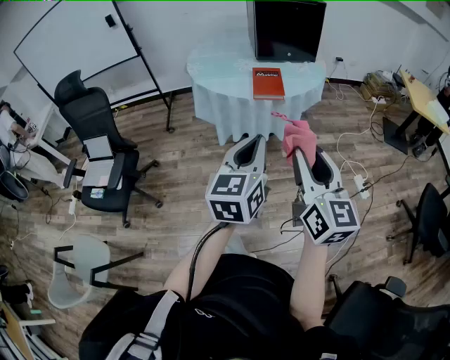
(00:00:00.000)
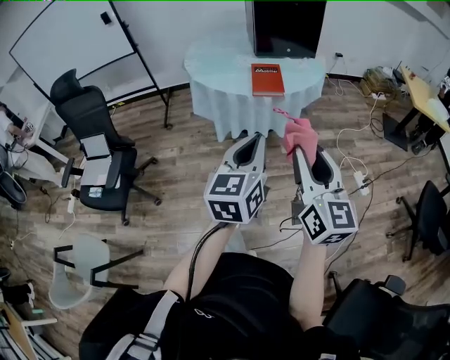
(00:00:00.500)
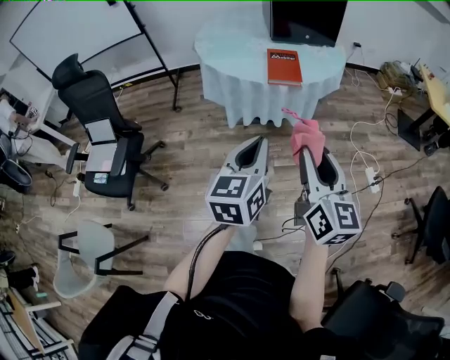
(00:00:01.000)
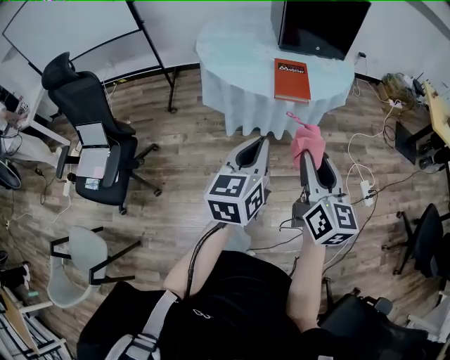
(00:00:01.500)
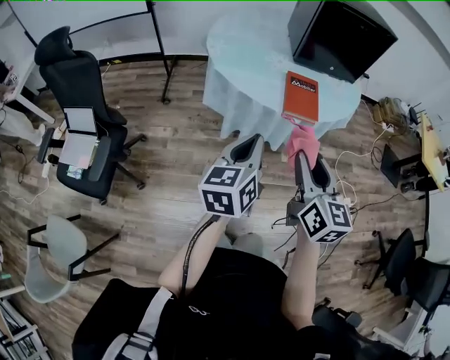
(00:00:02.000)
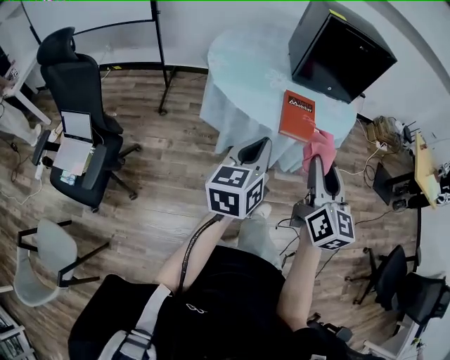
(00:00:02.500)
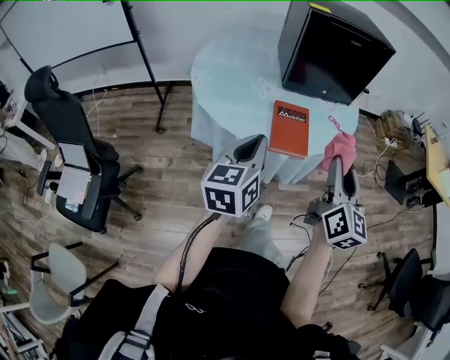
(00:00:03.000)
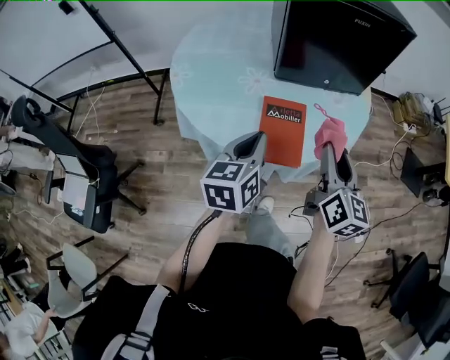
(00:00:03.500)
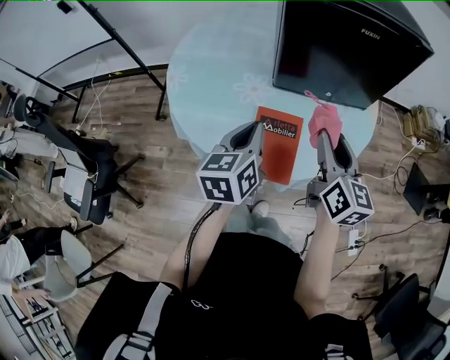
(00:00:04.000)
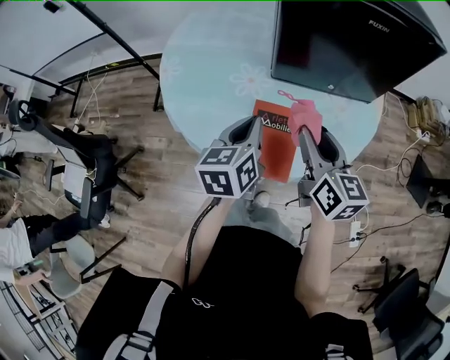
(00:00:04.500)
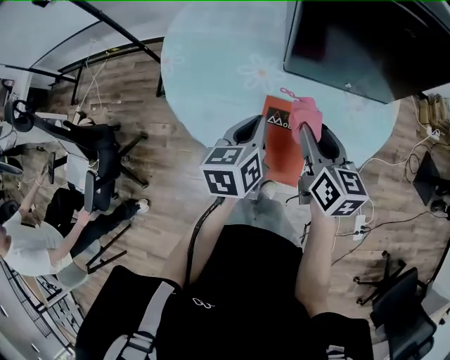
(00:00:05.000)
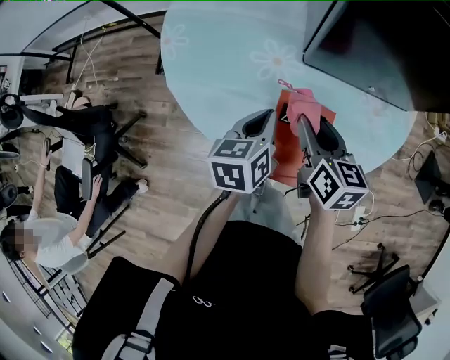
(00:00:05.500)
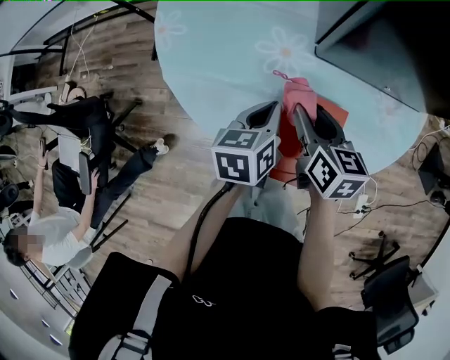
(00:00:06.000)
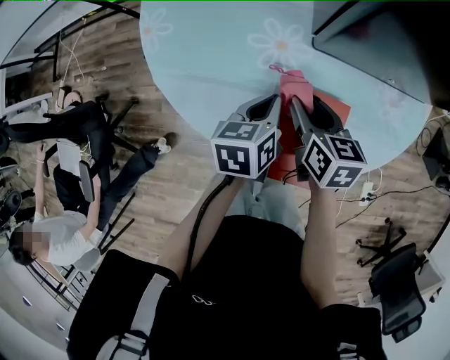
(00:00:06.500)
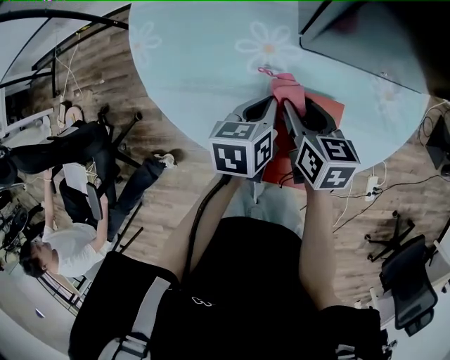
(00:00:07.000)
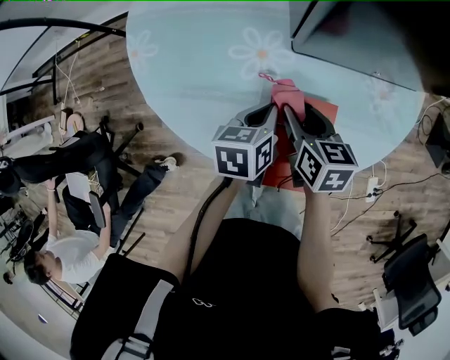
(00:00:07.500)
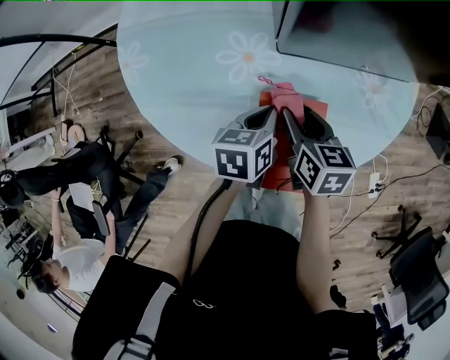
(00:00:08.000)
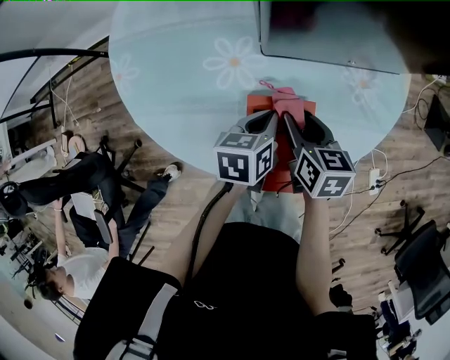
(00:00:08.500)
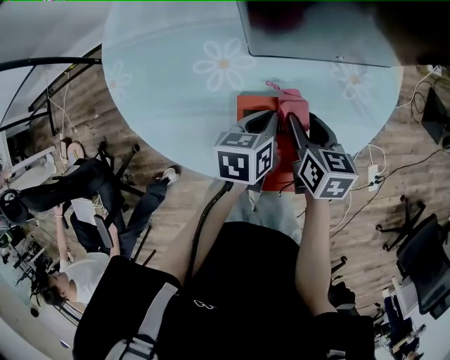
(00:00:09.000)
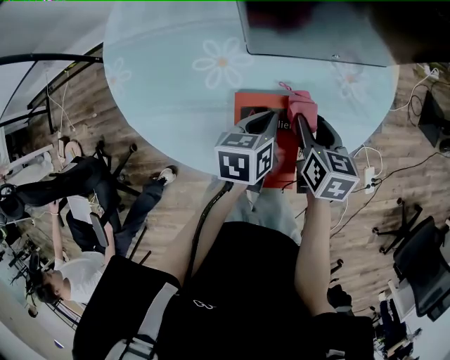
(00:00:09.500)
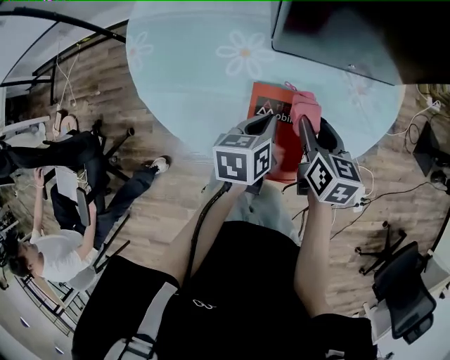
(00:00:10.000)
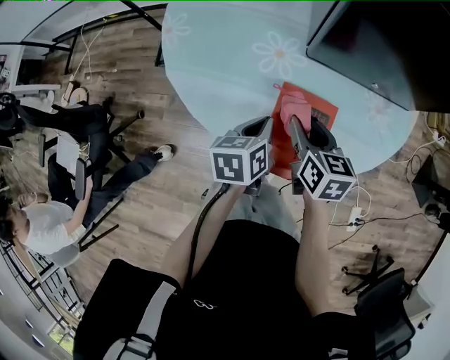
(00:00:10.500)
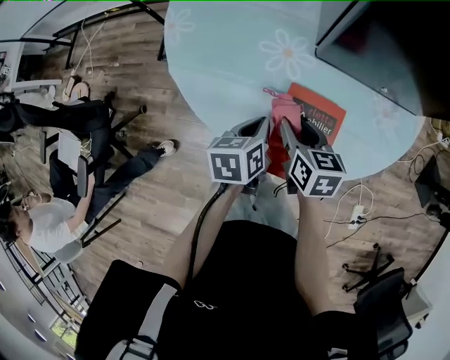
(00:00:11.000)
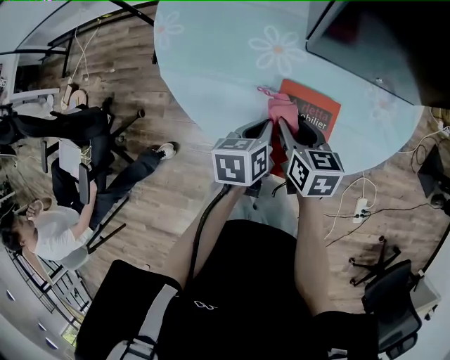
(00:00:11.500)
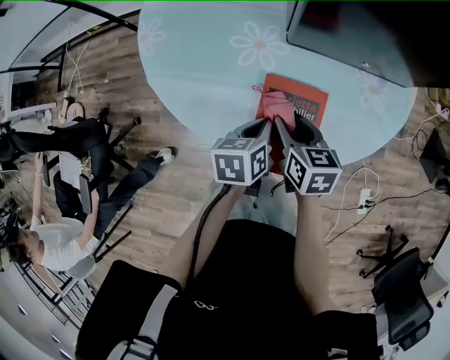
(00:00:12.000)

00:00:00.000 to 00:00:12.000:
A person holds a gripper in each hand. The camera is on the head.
00:00:00.000 to 00:00:02.000: Both grippers move forward and to the left, some 25 cm.
00:00:02.000 to 00:00:04.000: The pair of grippers is taken forward and to the right, approximately 40 cm.
00:00:04.000 to 00:00:06.000: The left gripper is displaced downward and forward by roughly 20 cm, and turns by about 20 degrees, while the right gripper heads downward, to the left and forward, covering roughly 25 cm, and rotates approximately 30 degrees.
00:00:06.000 to 00:00:08.000: The right gripper moves about 5 cm, while the left gripper is displaced to the right by some 5 cm.
00:00:08.000 to 00:00:10.000: The left gripper shifts by approximately 5 cm, while the right gripper shifts roughly 5 cm to the right.
00:00:10.000 to 00:00:12.000: The right gripper travels to the left by approximately 10 cm.

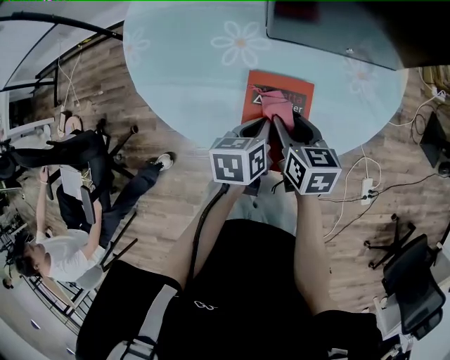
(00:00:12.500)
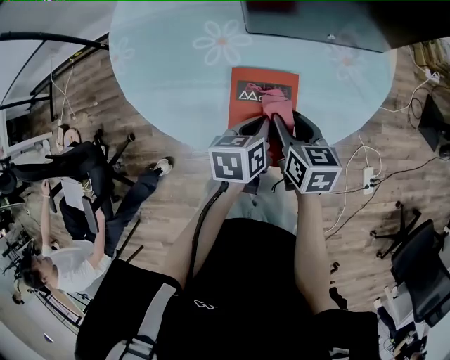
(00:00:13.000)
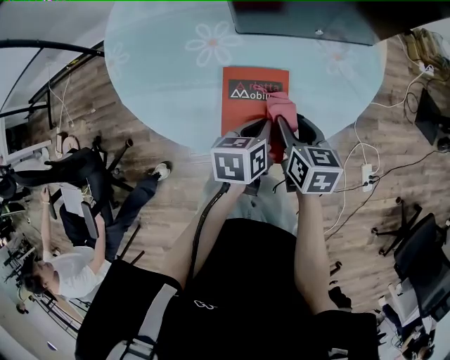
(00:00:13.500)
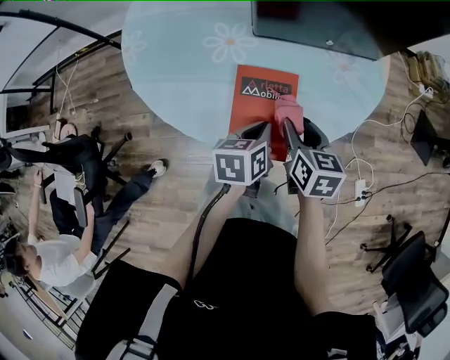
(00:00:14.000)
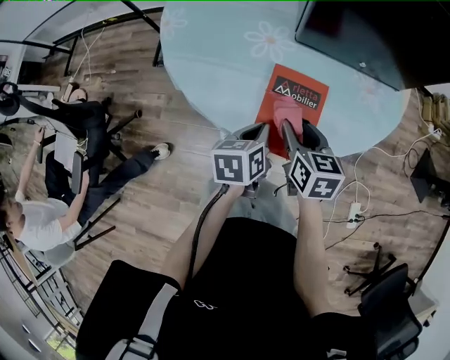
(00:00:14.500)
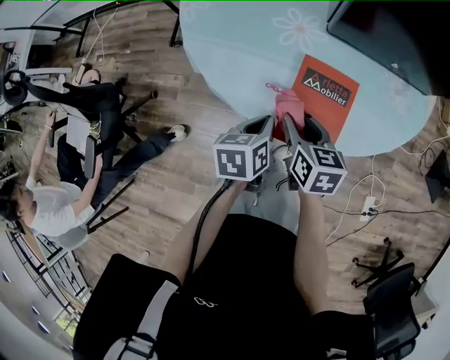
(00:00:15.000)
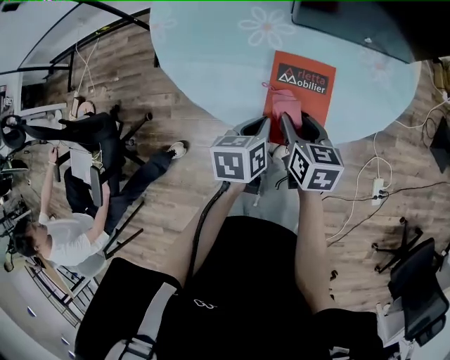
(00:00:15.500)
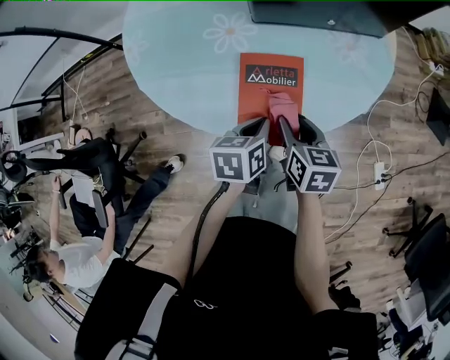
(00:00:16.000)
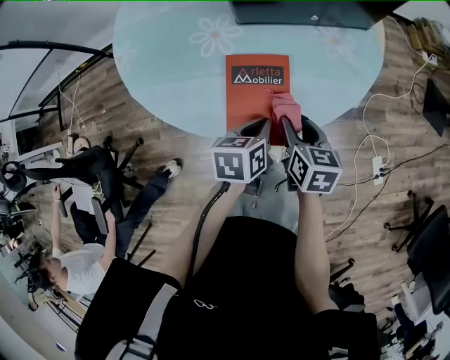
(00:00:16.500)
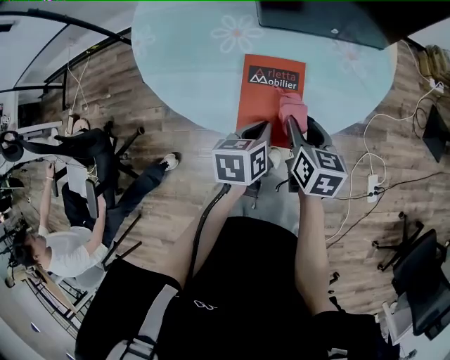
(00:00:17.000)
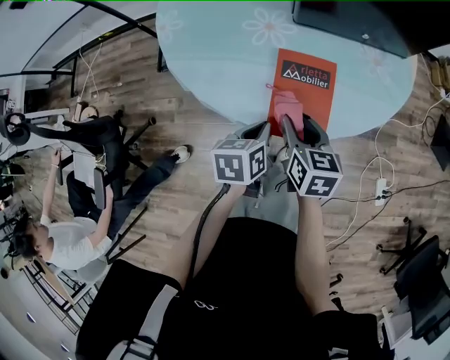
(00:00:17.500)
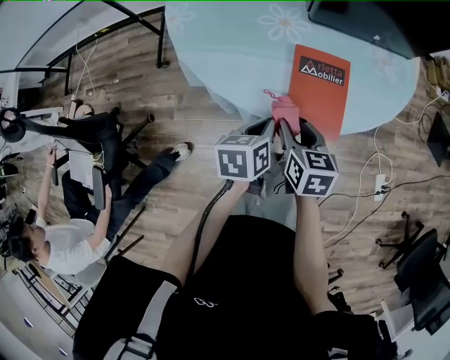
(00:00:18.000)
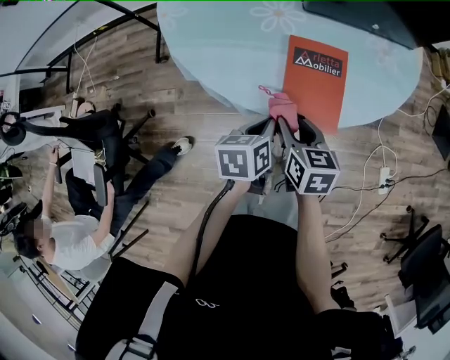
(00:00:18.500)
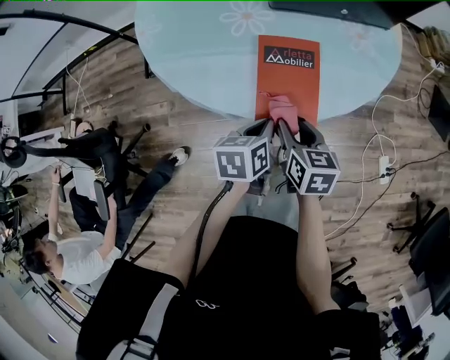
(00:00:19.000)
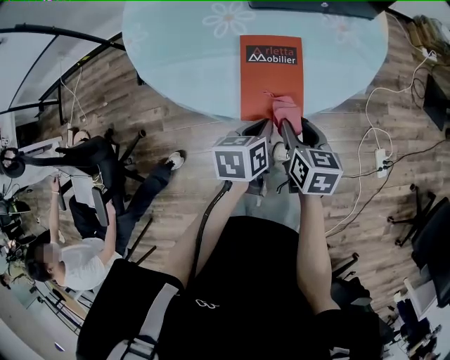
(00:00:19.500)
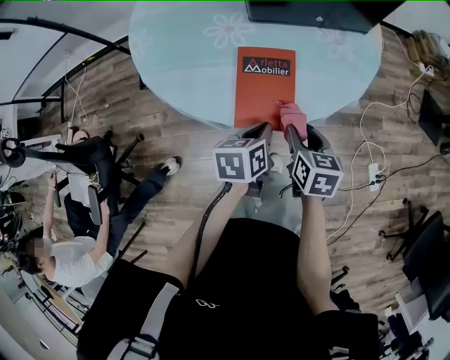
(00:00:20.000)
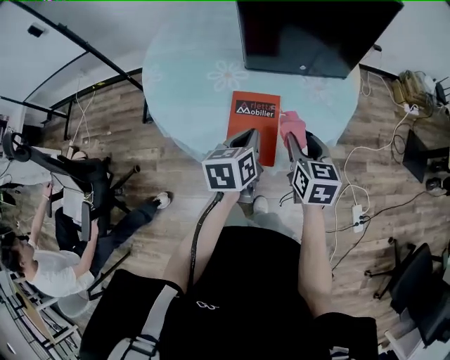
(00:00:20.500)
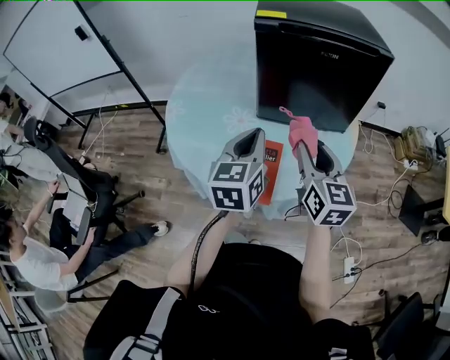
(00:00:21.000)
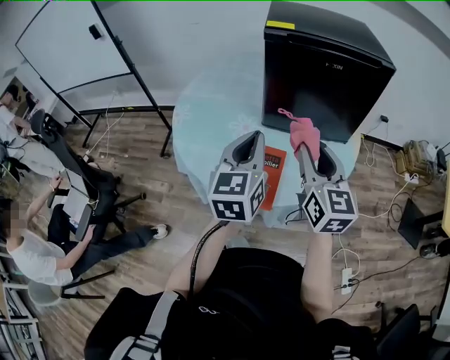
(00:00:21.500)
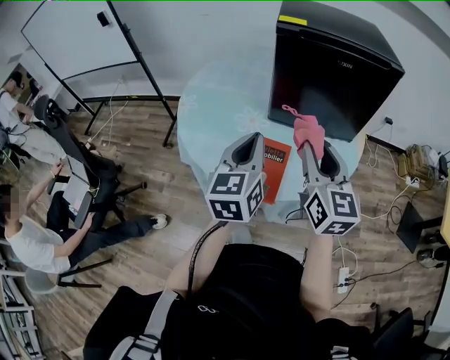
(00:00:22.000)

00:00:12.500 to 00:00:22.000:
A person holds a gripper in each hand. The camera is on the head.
00:00:12.500 to 00:00:14.500: The right gripper travels to the right and back again, some 5 cm each way; the left gripper heads backward, covering some 5 cm.
00:00:14.500 to 00:00:16.500: Both grippers move to the right, roughly 10 cm.
00:00:16.500 to 00:00:18.000: The right gripper moves to the left, approximately 15 cm. The left gripper goes approximately 15 cm to the left and backward.
00:00:18.000 to 00:00:20.000: Both grippers travel together to the right, roughly 15 cm.
00:00:20.000 to 00:00:22.000: The grippers both shift upward by about 30 cm. The right gripper angles its fingers upward, by approximately 40 degrees, while the left gripper tips its fingers upward by roughly 40 degrees.

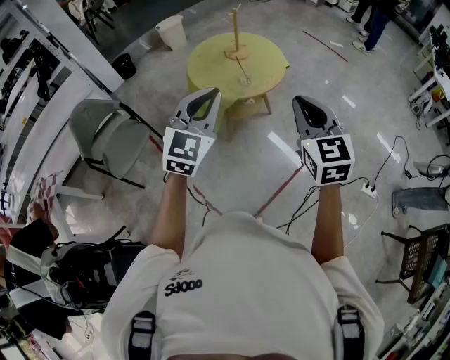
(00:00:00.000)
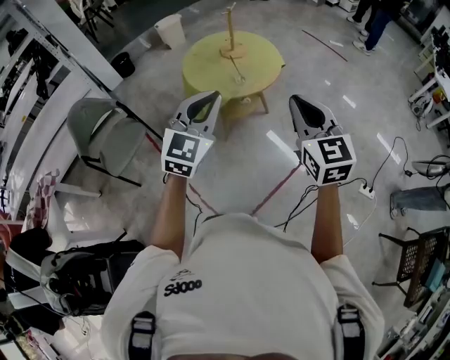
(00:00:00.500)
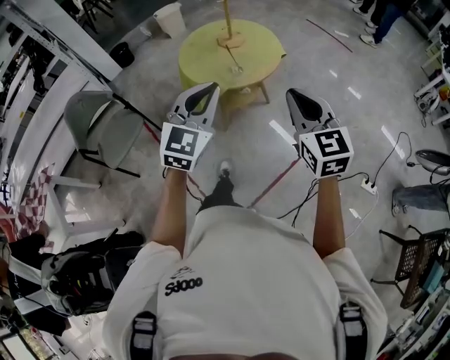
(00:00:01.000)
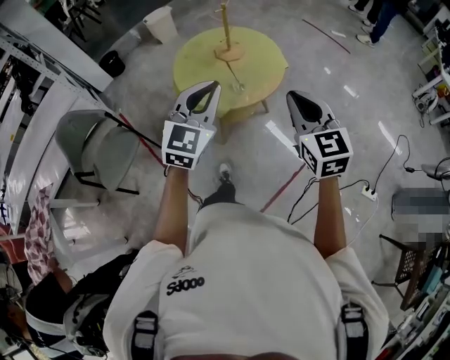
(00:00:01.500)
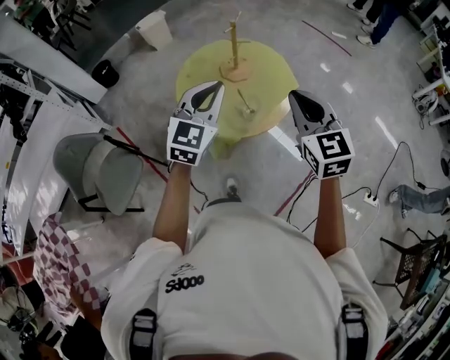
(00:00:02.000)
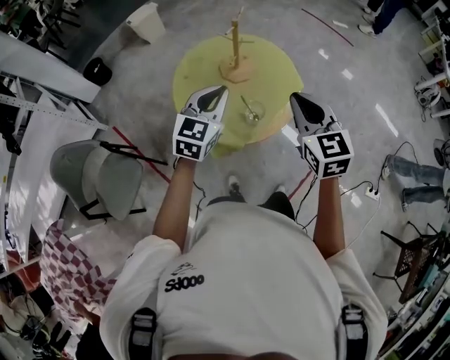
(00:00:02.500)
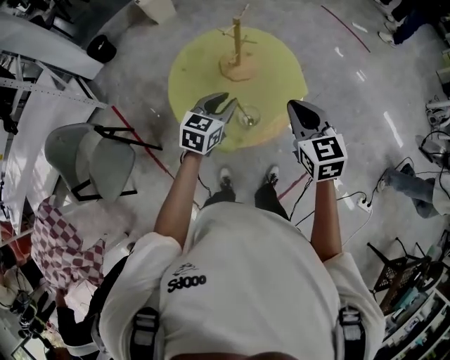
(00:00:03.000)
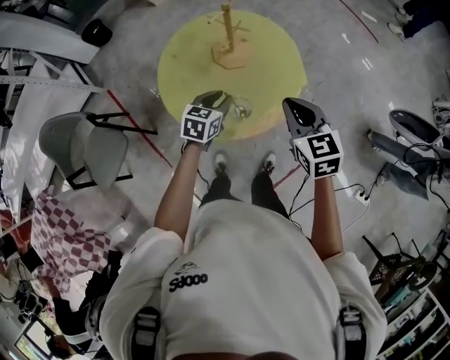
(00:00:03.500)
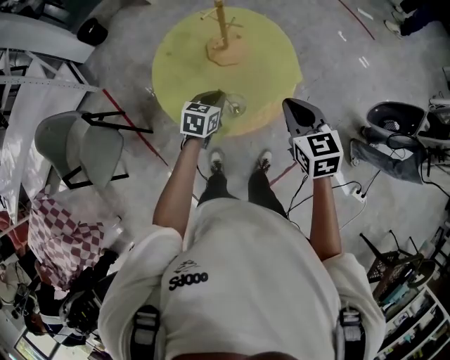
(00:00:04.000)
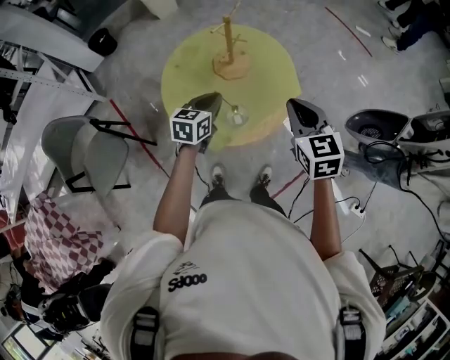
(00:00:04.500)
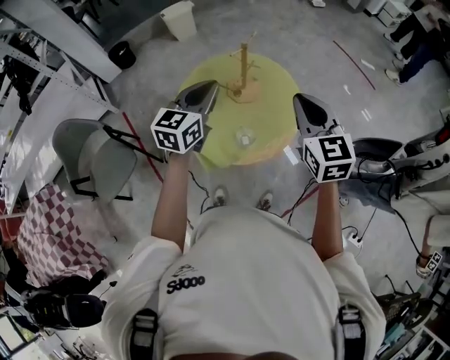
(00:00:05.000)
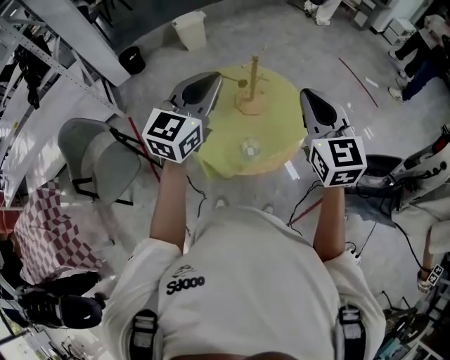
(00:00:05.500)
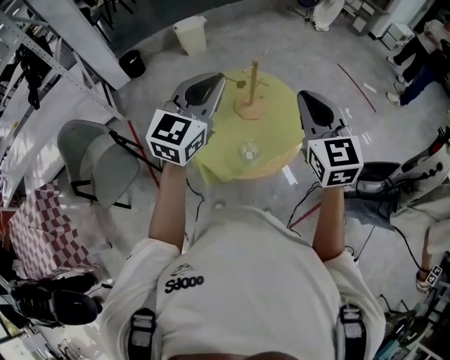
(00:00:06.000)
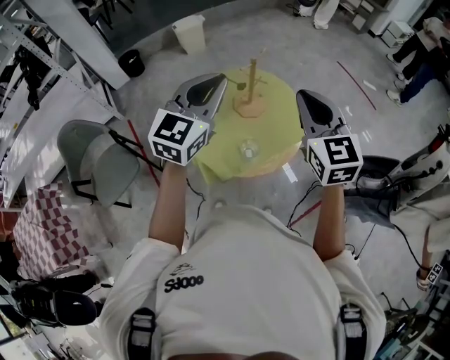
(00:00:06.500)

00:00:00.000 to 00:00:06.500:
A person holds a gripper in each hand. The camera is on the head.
00:00:00.000 to 00:00:02.000: The grippers both shift forward by some 35 cm.
00:00:02.000 to 00:00:04.500: The left gripper shifts some 25 cm downward and forward, swivels approximately 40 degrees, and opens, then closes once more. The right gripper moves forward and downward, about 20 cm.
00:00:04.500 to 00:00:06.500: The right gripper moves upward, roughly 15 cm, and turns by about 20 degrees, while the left gripper moves upward, approximately 30 cm, and swivels about 40 degrees.
